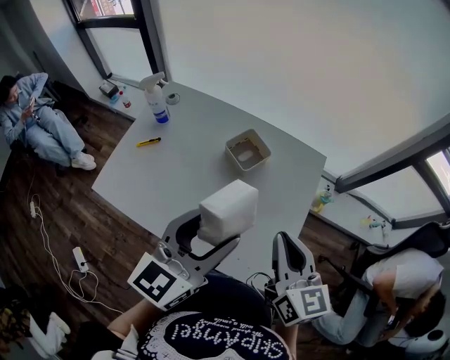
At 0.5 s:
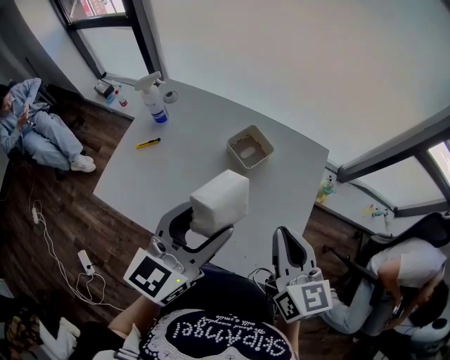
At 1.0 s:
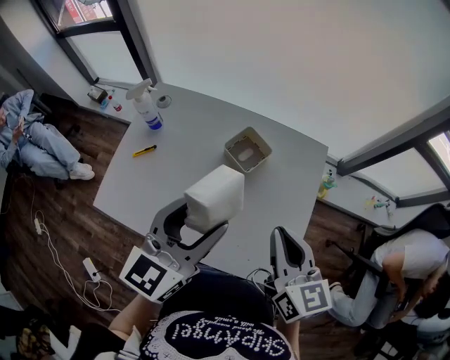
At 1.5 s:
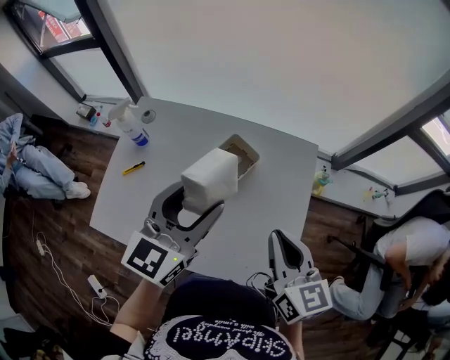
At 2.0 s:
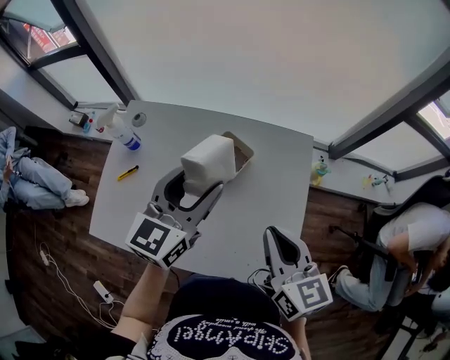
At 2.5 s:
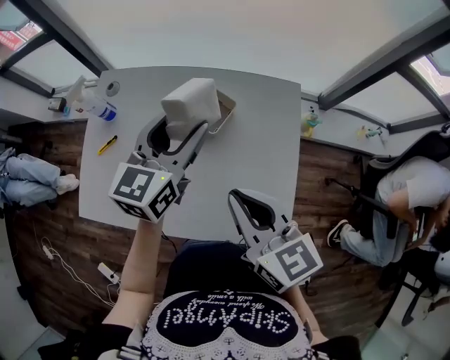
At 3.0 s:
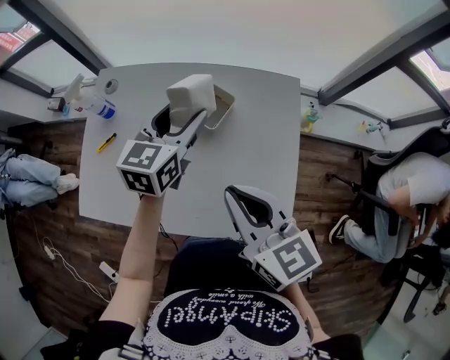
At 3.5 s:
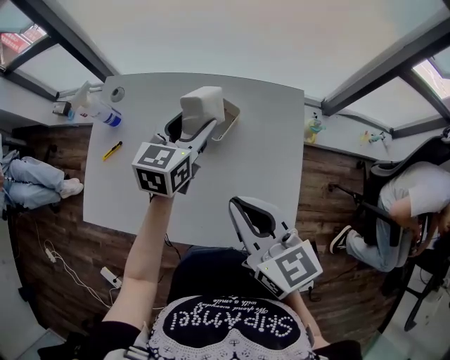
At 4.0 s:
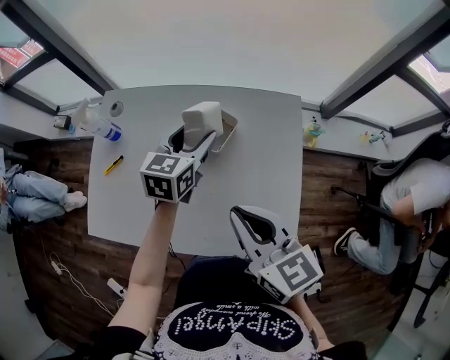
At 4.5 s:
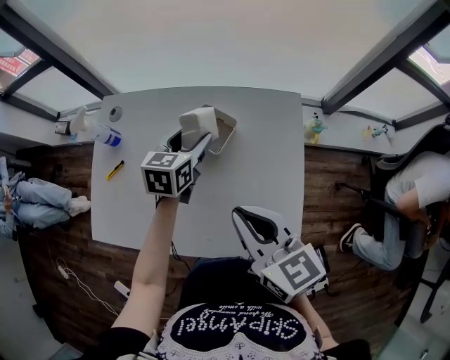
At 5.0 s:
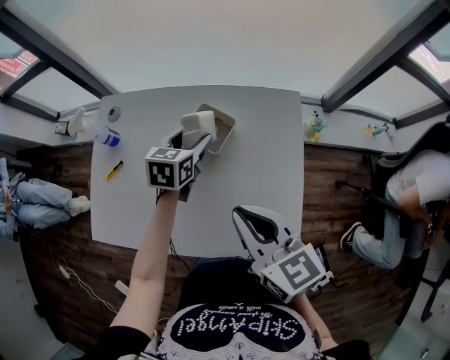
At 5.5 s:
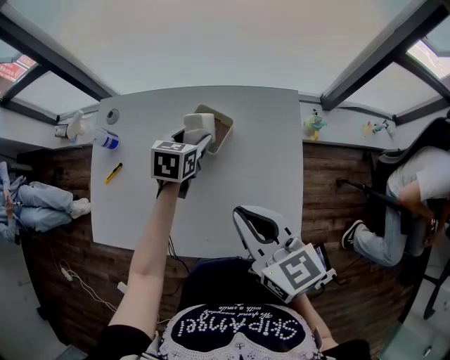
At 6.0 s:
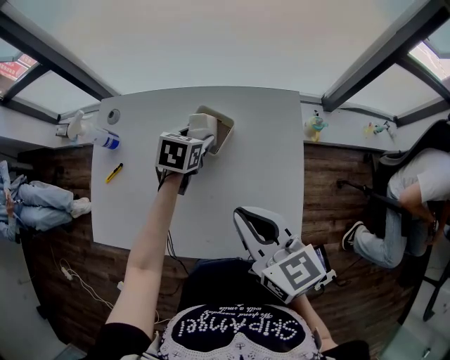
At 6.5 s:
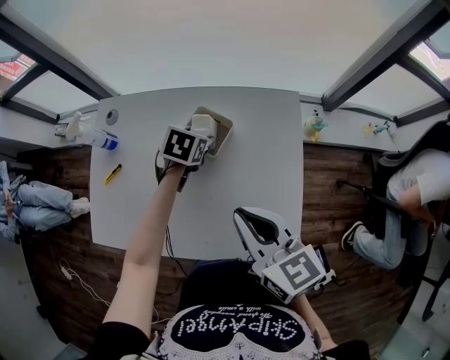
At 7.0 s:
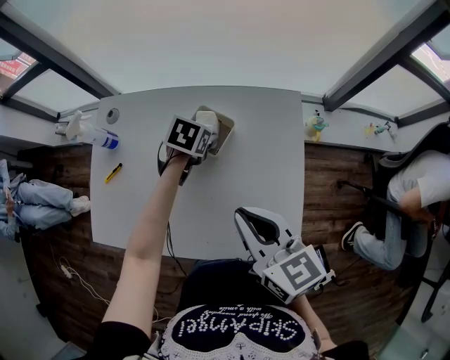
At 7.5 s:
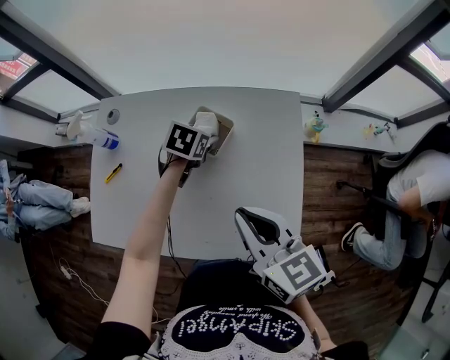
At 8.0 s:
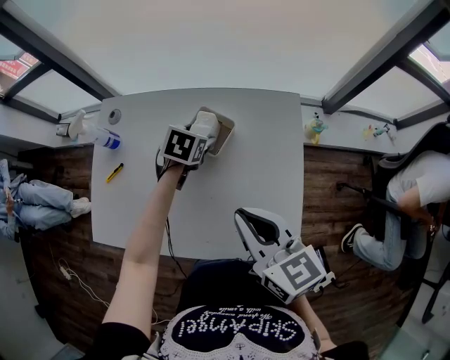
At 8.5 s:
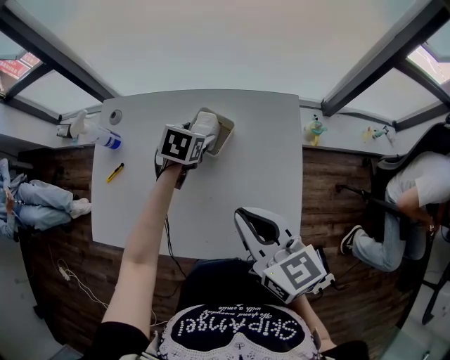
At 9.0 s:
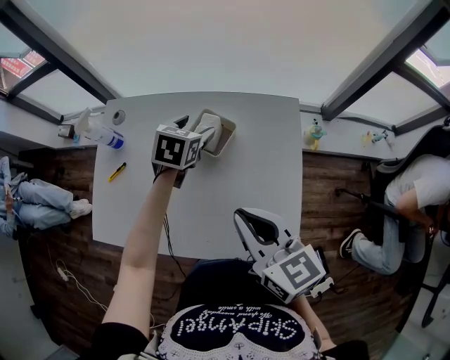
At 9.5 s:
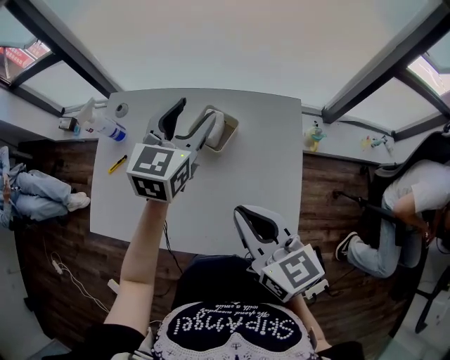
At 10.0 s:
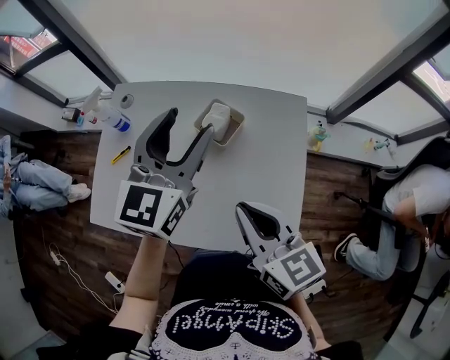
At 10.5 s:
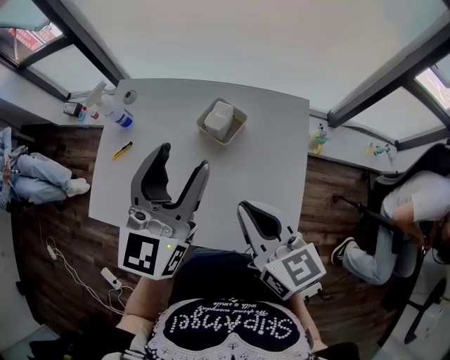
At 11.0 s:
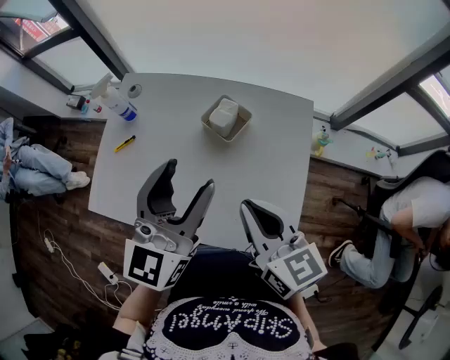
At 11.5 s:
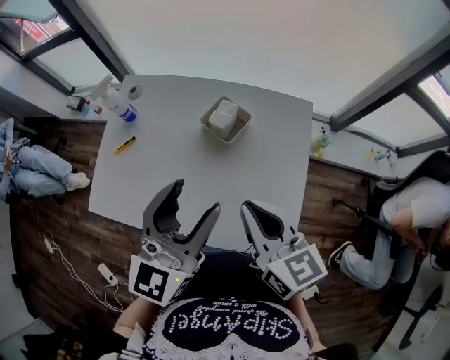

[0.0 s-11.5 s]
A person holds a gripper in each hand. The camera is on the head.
0.0 to 2.0 s: The left gripper is displaced forward by roughly 15 cm.
2.0 to 4.0 s: The left gripper travels downward and forward by about 15 cm. The right gripper travels to the left by roughly 5 cm.
4.0 to 6.0 s: The left gripper moves downward, roughly 10 cm, and rotates some 30 degrees.
6.0 to 7.5 s: The grippers stay close to where they were, moving slightly.
7.5 to 9.5 s: The left gripper travels upward by about 25 cm, and points its fingers about 40 degrees further upward.
9.5 to 11.5 s: The left gripper travels backward by some 20 cm.

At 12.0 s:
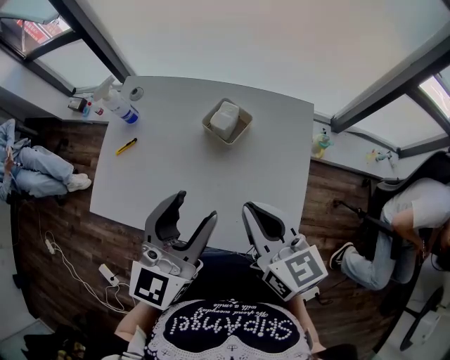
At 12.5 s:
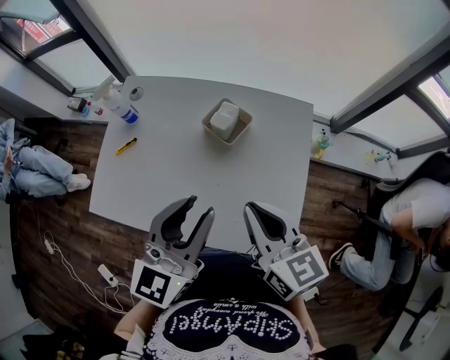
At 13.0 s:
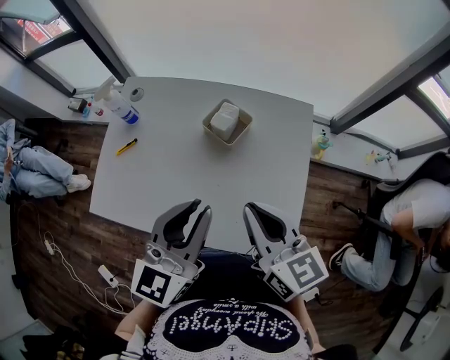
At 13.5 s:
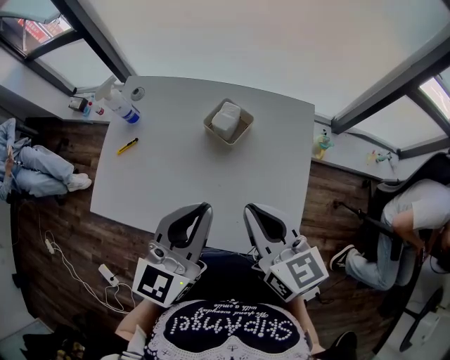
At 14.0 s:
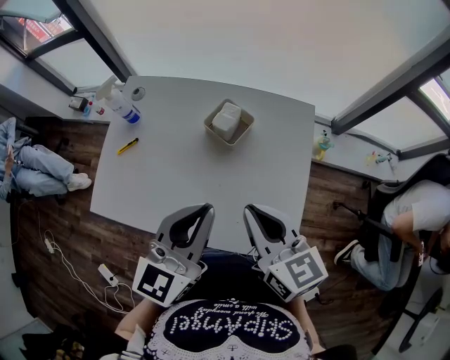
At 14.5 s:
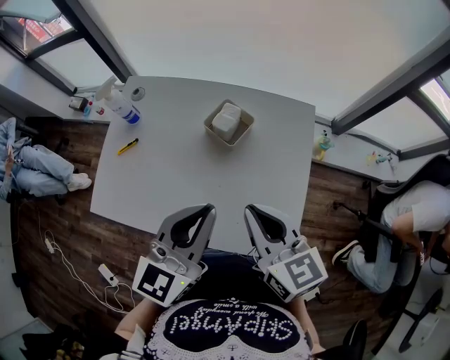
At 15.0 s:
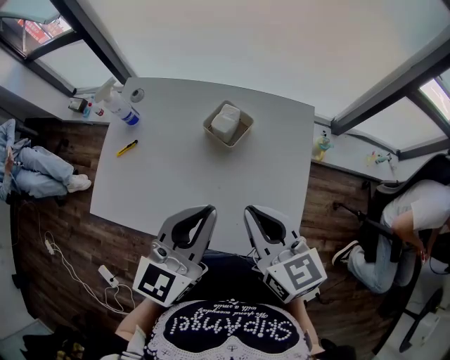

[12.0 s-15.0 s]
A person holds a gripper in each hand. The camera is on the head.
12.0 to 13.5 s: The left gripper closes up.
13.5 to 15.0 s: The two grippers keep their place.

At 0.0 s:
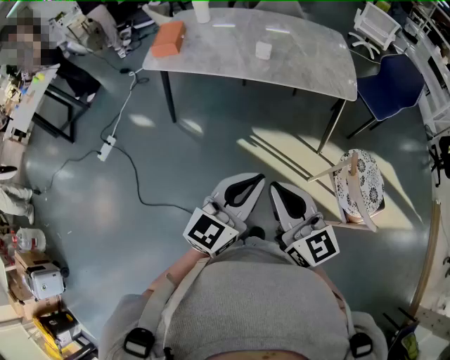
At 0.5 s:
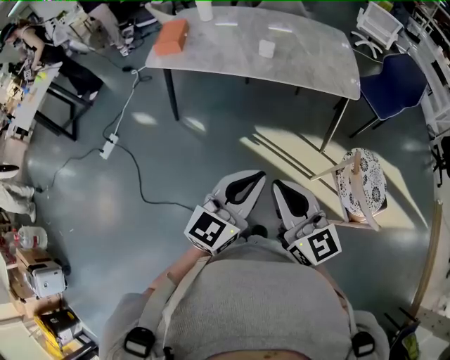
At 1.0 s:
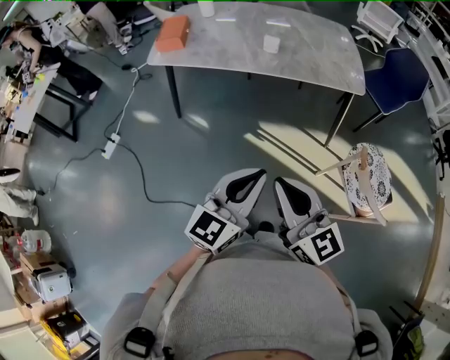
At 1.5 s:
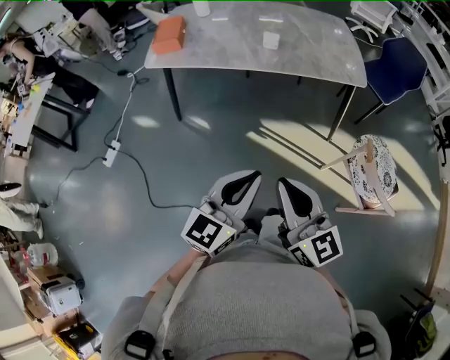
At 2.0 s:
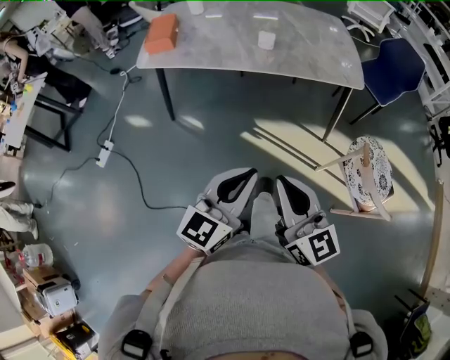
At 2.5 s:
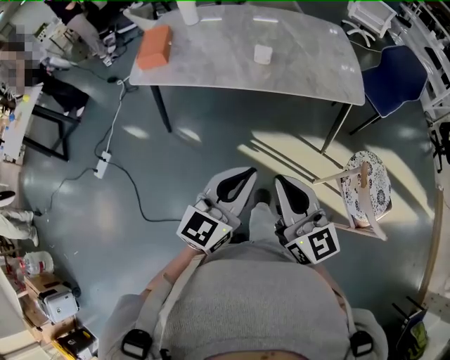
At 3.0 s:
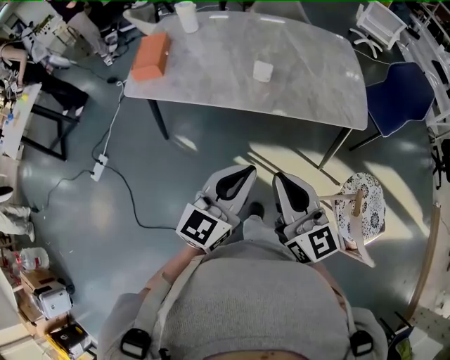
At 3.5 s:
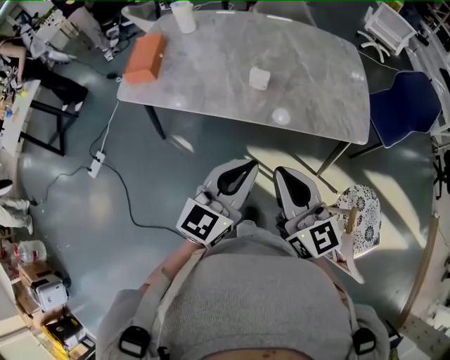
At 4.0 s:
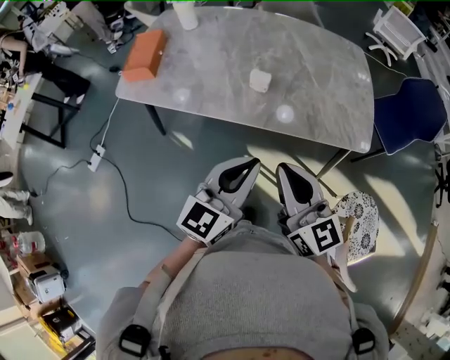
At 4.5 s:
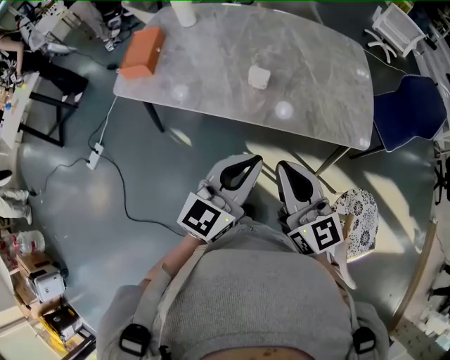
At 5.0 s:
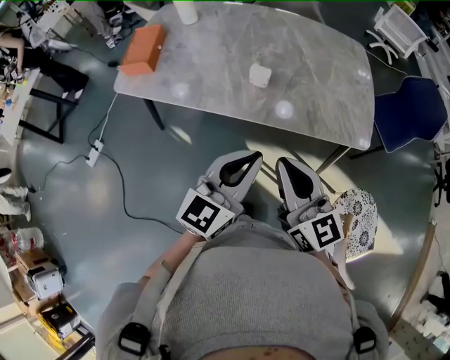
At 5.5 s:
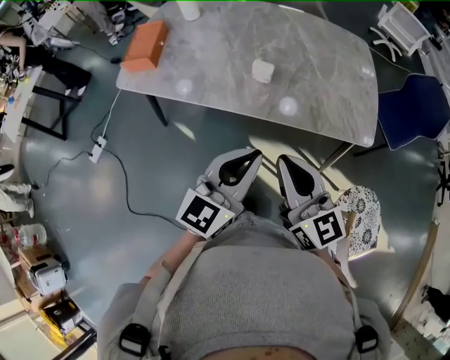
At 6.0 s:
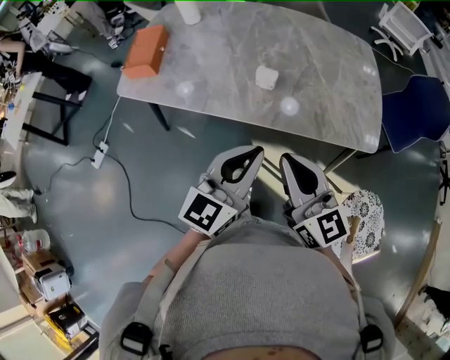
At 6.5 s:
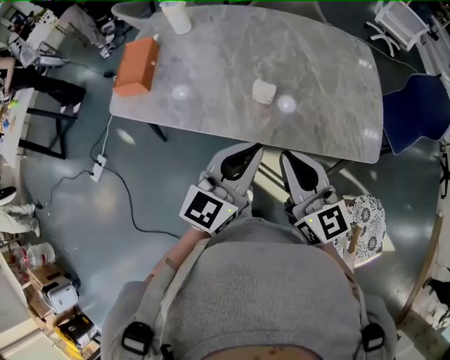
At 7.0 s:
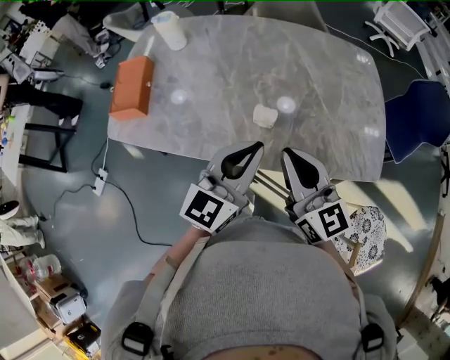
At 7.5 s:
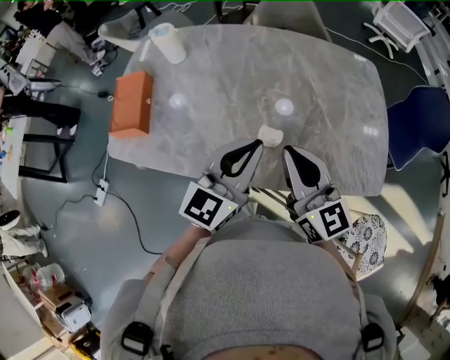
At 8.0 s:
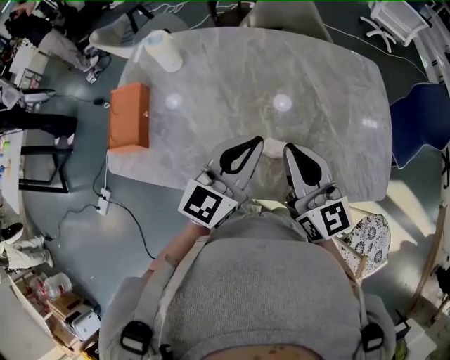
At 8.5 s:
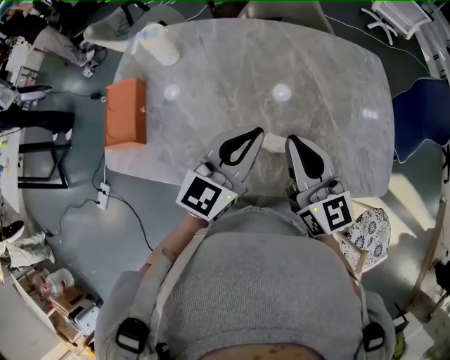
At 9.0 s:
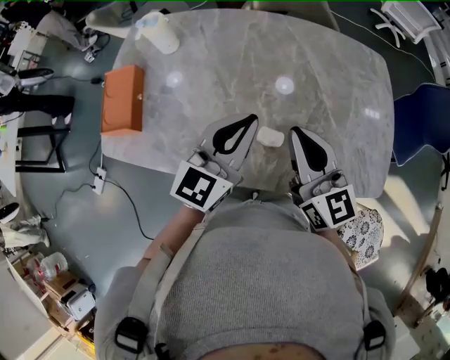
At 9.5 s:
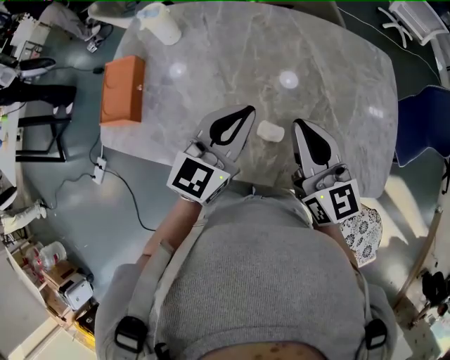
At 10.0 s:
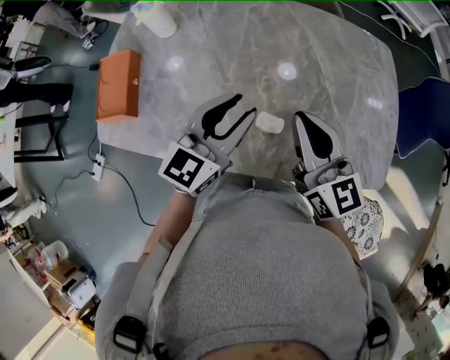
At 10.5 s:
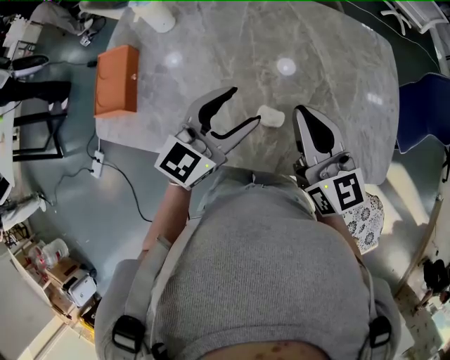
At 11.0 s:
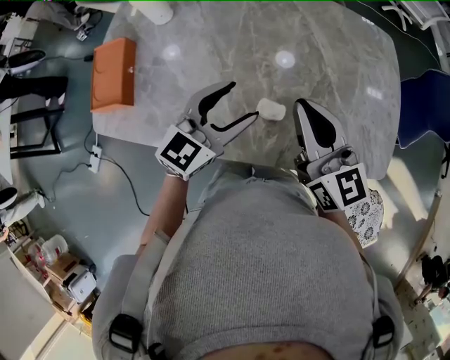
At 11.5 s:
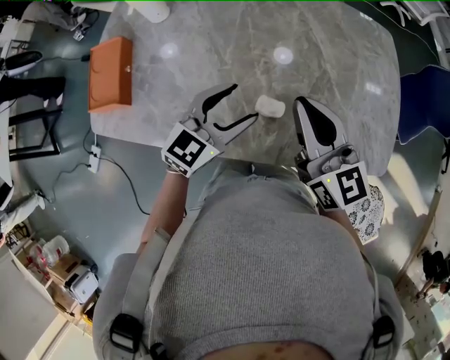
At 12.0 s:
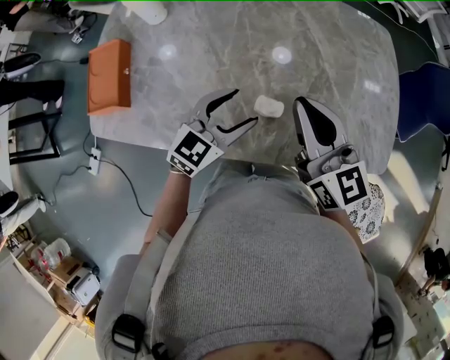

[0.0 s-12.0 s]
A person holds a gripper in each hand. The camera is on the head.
0.0 to 2.0 s: The left gripper goes roughly 5 cm to the left; the right gripper moves about 5 cm.
2.0 to 4.0 s: The two grippers go some 30 cm forward.
4.0 to 6.0 s: The grippers stay close to where they were, moving slightly.
6.0 to 8.0 s: The two grippers go roughly 25 cm forward.
8.0 to 10.0 s: The left gripper opens up.
10.0 to 12.0 s: The left gripper moves downward, about 10 cm, and opens its fingers.

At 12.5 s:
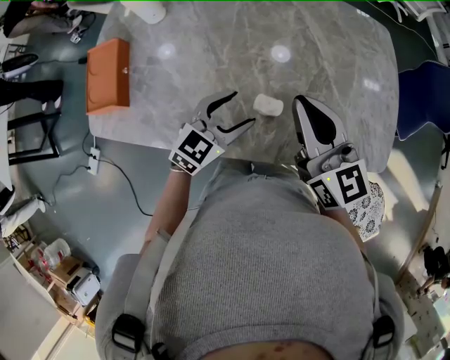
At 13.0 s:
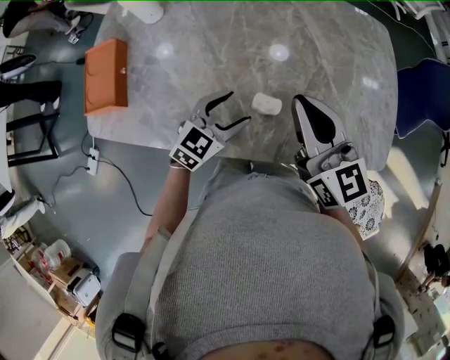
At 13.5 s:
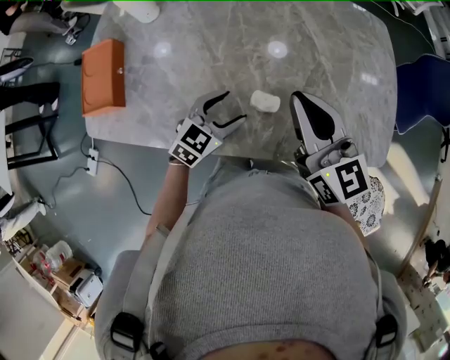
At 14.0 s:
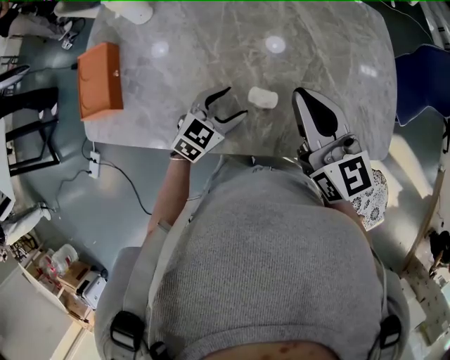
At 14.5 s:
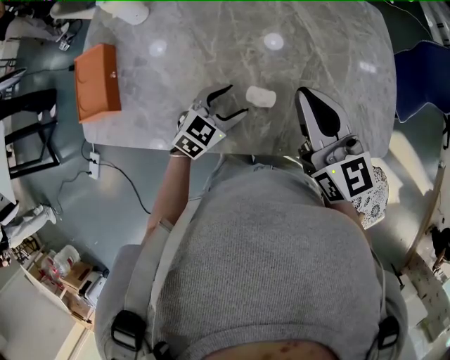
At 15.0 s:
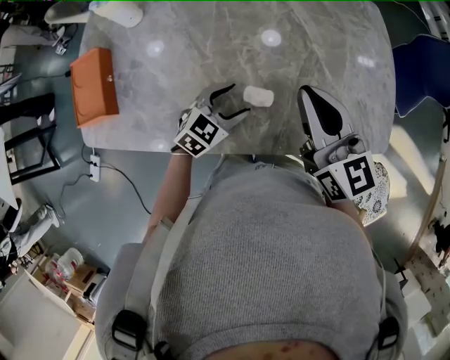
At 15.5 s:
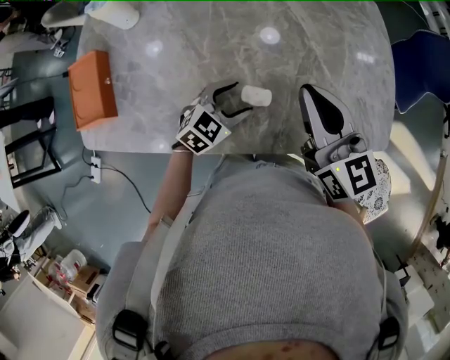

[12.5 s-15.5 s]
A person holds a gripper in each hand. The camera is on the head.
12.5 to 14.0 s: The left gripper moves downward, some 5 cm.
14.0 to 15.5 s: The grippers stay close to where they were, moving slightly.
